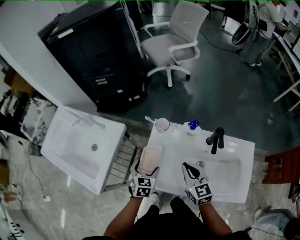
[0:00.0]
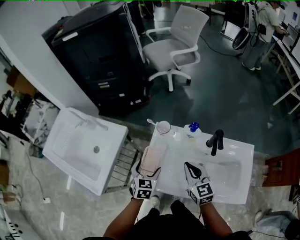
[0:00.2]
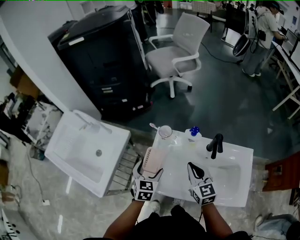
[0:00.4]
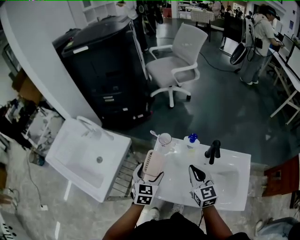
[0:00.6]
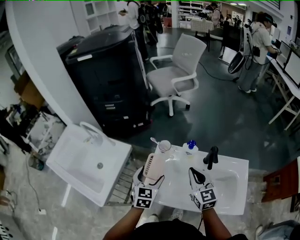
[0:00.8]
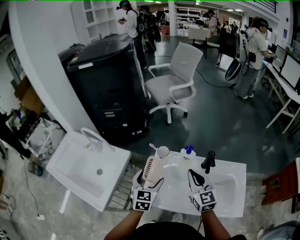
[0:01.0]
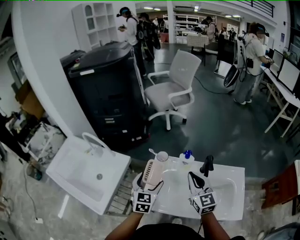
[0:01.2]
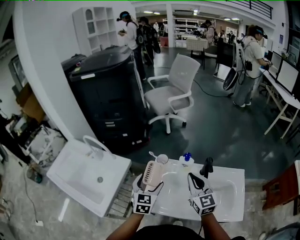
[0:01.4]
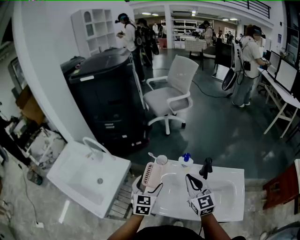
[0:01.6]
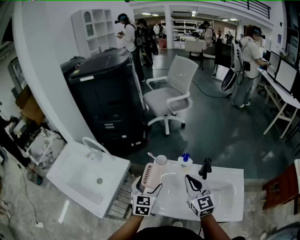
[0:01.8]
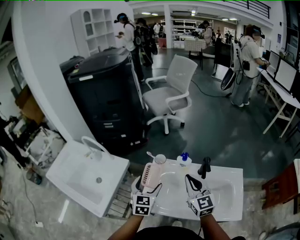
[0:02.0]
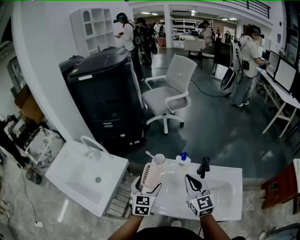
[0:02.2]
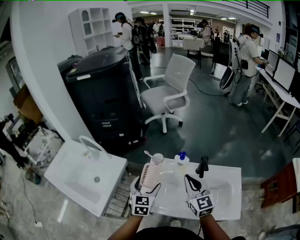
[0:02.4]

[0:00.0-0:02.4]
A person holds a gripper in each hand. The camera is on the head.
0:00.0 to 0:01.2: The two grippers go roughly 15 cm upward. The left gripper turns by some 20 degrees.
0:01.2 to 0:02.4: There are only small adjustments of the grippers.

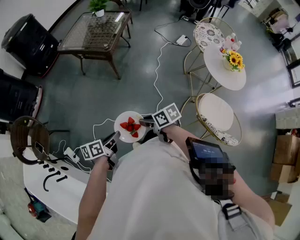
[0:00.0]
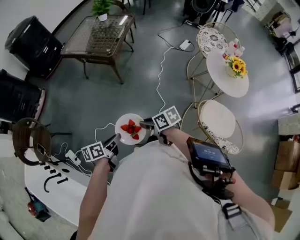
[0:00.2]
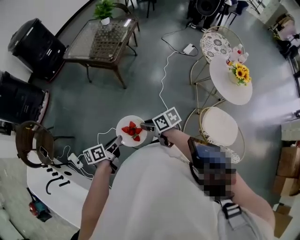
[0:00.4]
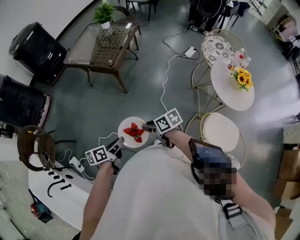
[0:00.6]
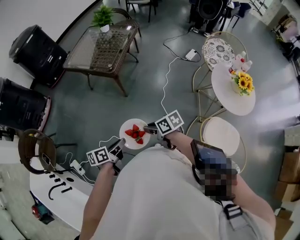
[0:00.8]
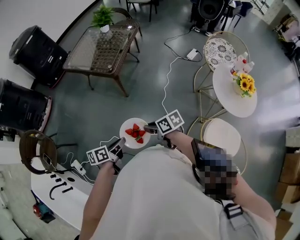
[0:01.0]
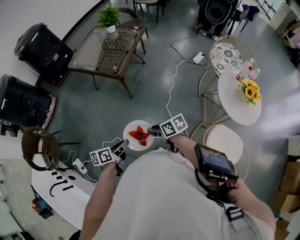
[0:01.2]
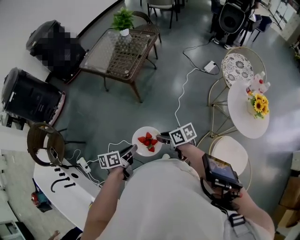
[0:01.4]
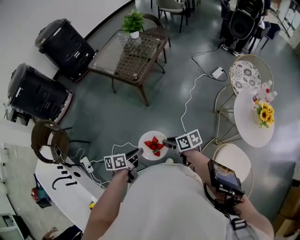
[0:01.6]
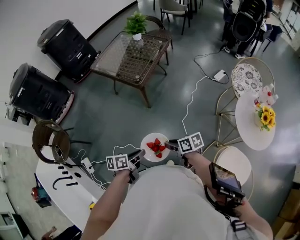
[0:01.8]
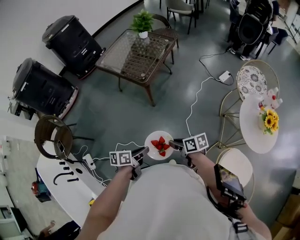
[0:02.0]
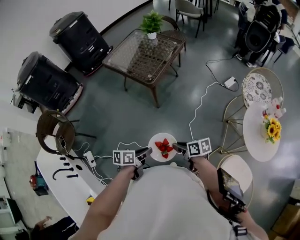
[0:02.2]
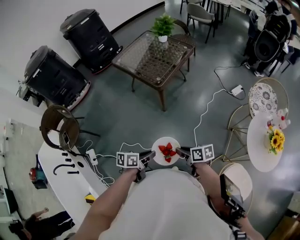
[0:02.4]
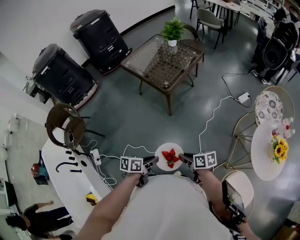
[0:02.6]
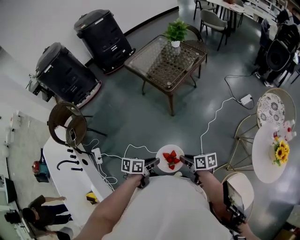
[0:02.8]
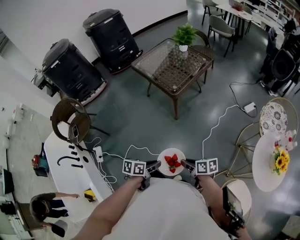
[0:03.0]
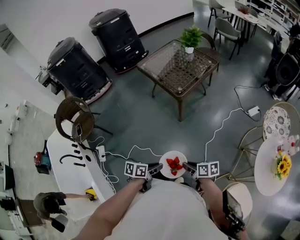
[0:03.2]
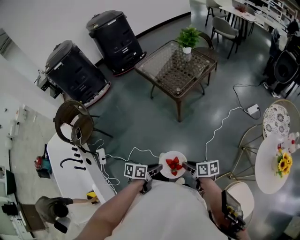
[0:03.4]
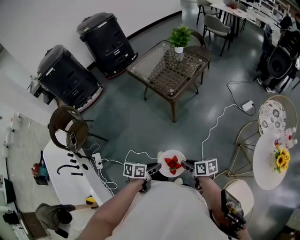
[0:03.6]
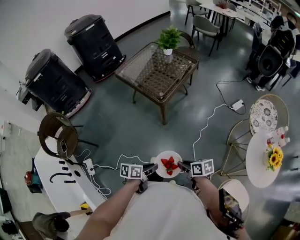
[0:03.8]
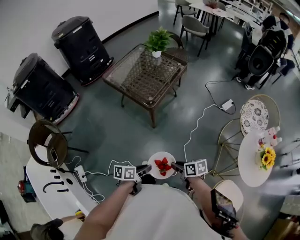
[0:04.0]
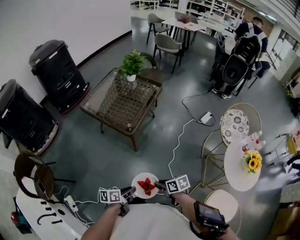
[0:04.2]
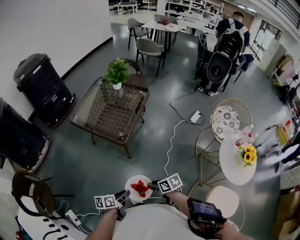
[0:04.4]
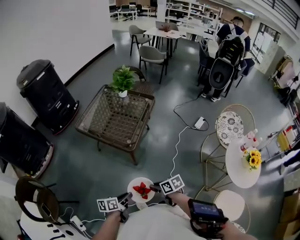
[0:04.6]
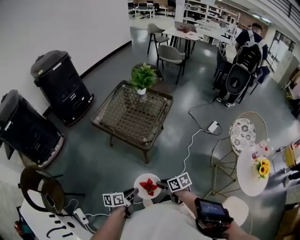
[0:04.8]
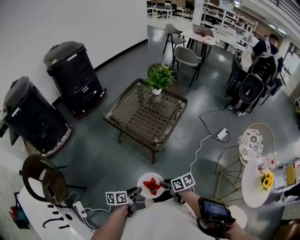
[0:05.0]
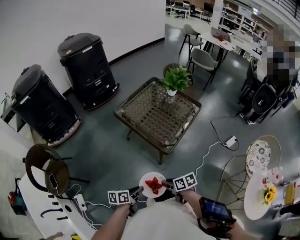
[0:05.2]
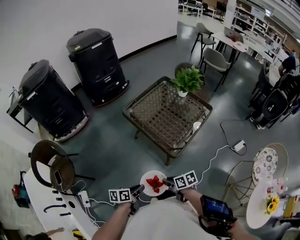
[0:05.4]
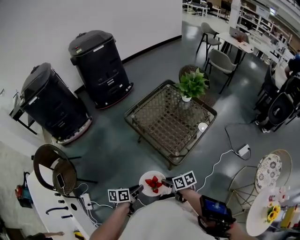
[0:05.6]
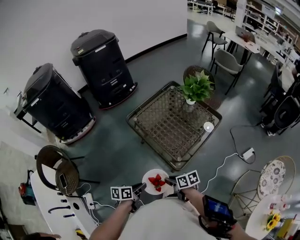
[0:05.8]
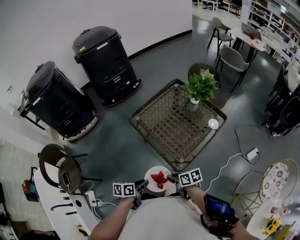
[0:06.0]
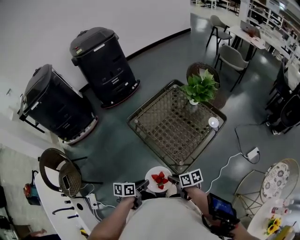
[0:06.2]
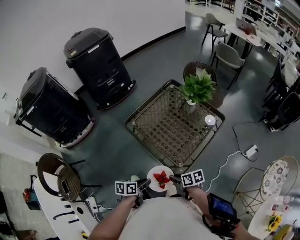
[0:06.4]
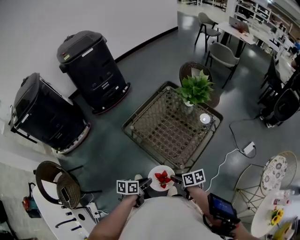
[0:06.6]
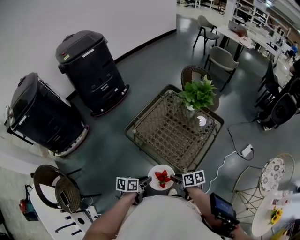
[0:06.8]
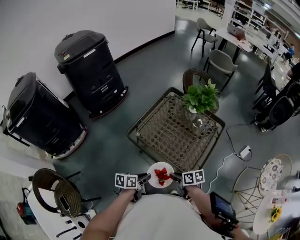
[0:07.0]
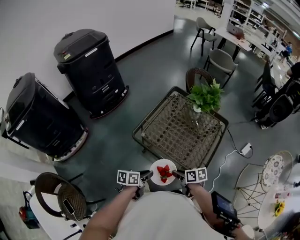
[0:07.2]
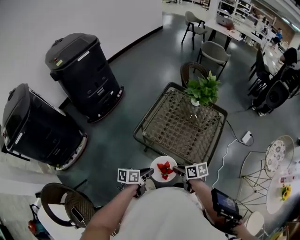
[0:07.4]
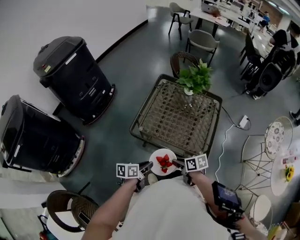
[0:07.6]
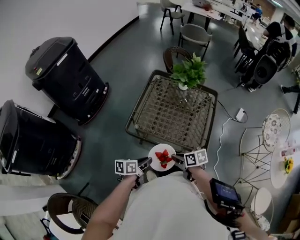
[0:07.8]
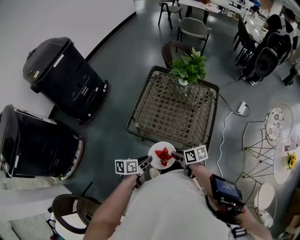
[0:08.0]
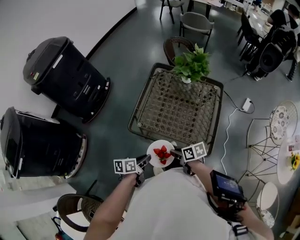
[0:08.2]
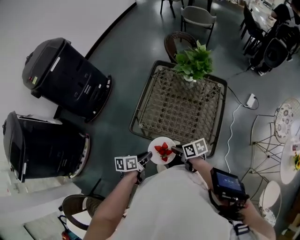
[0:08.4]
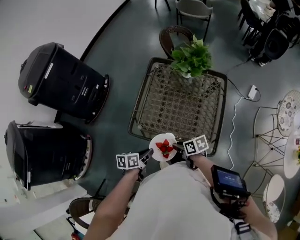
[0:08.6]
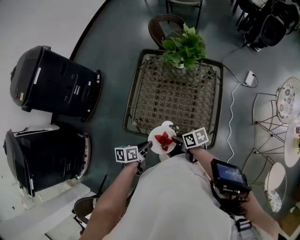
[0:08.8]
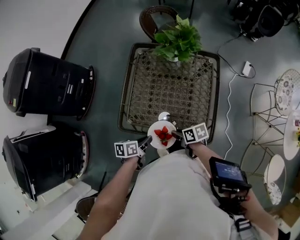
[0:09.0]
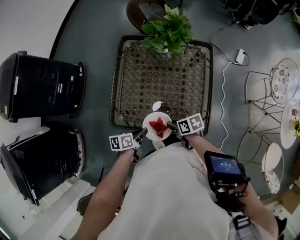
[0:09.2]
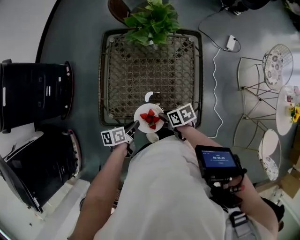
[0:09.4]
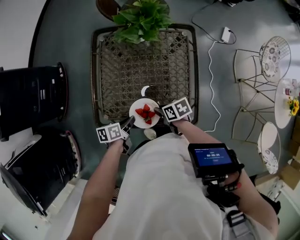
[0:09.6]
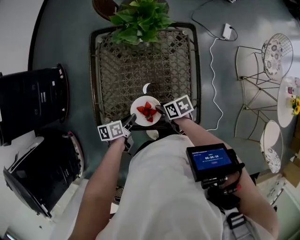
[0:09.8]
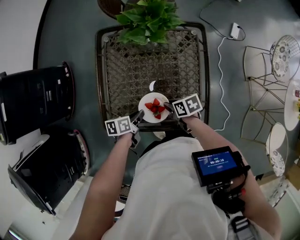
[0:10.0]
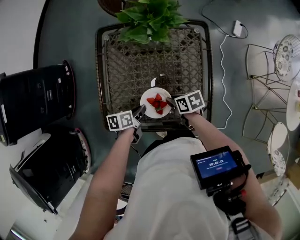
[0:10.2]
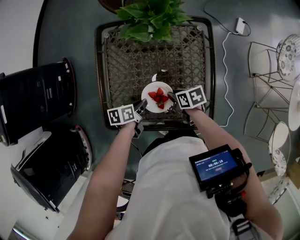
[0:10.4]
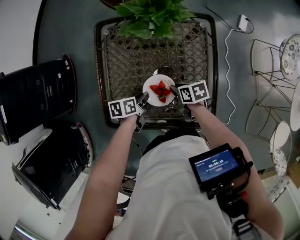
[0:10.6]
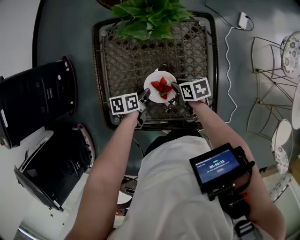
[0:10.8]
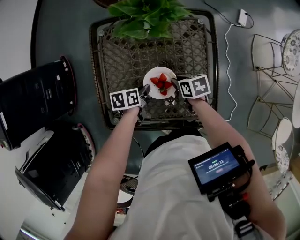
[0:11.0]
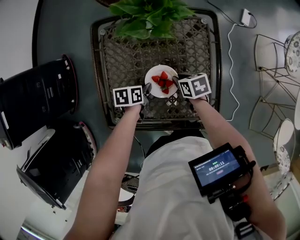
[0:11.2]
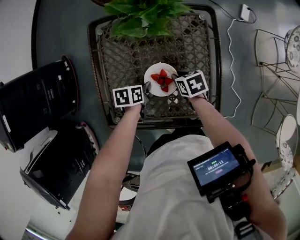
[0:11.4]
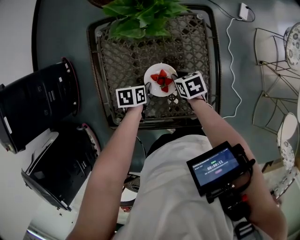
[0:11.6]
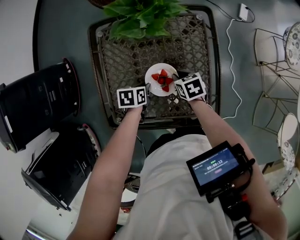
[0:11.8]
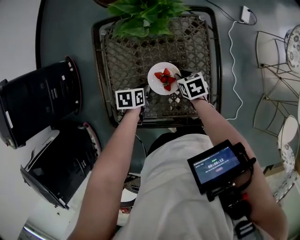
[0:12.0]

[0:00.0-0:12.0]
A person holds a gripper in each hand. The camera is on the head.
0:00.0 to 0:01.6: Both grippers travel together forward and to the right, some 15 cm.
0:01.6 to 0:03.0: The grippers make only small movements.
0:03.0 to 0:04.4: The two grippers go some 15 cm forward.
0:04.4 to 0:06.0: Both grippers travel together forward, approximately 30 cm. The left gripper turns by about 20 degrees; the right gripper turns by about 20 degrees.
0:06.0 to 0:07.6: The right gripper moves approximately 20 cm, and turns by approximately 30 degrees, while the left gripper ends up about 25 cm from where it was, and changes its angle by some 30 degrees.
0:07.6 to 0:09.0: The right gripper ends up some 15 cm from where it was. Meanwhile the left gripper changes place by some 15 cm.
0:09.0 to 0:10.4: The left gripper changes place by some 20 cm; the right gripper moves approximately 15 cm.
0:10.4 to 0:12.0: The right gripper changes place by approximately 10 cm. The left gripper moves approximately 5 cm, and rotates roughly 20 degrees.

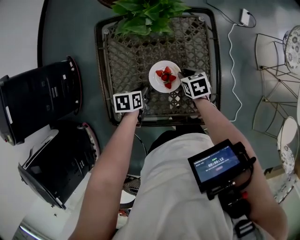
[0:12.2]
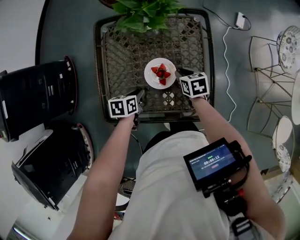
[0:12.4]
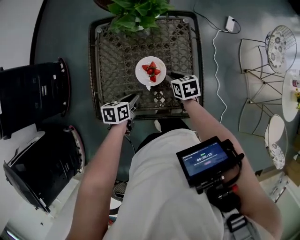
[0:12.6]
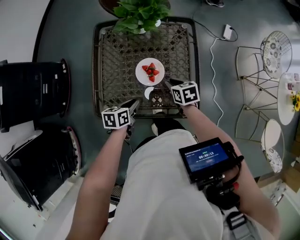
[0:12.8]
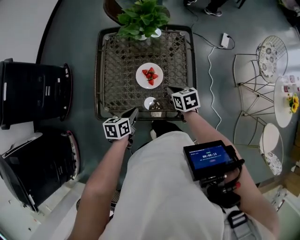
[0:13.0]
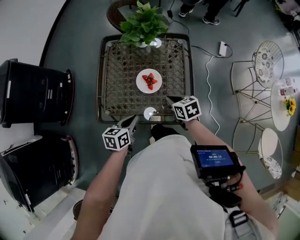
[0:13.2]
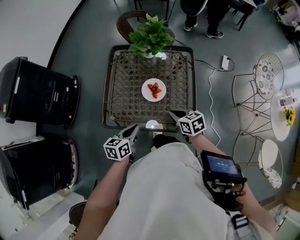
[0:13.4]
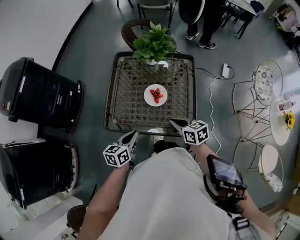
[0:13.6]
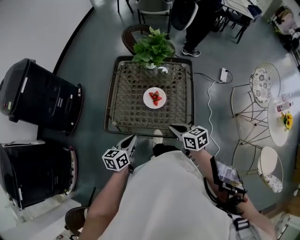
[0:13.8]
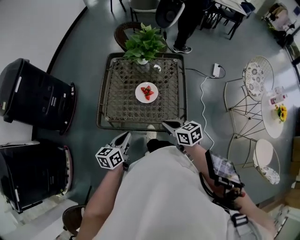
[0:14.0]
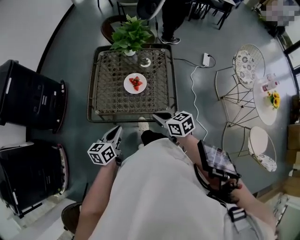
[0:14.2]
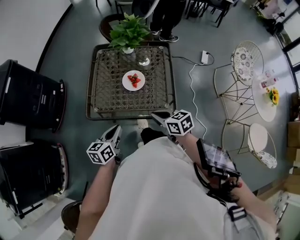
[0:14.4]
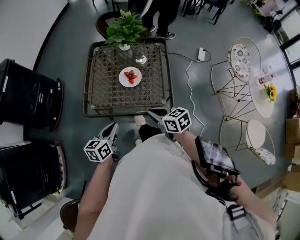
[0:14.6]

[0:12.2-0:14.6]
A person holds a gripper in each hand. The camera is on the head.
0:12.2 to 0:13.4: The two grippers go approximately 25 cm backward and upward. The left gripper points its fingers approximately 30 degrees further upward. Meanwhile the right gripper swivels roughly 20 degrees, and closes.
0:13.4 to 0:14.6: The left gripper heads backward, covering approximately 10 cm. Meanwhile the right gripper shifts some 10 cm backward and upward.

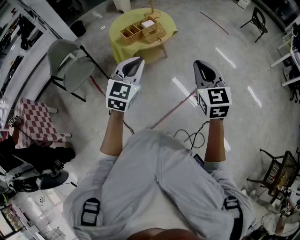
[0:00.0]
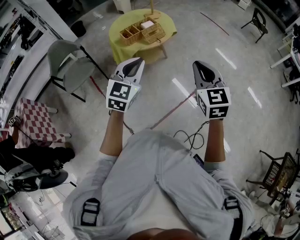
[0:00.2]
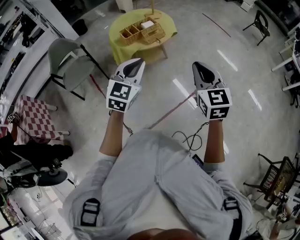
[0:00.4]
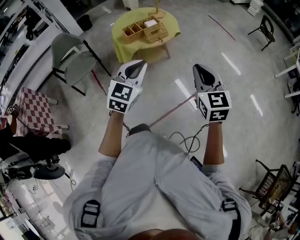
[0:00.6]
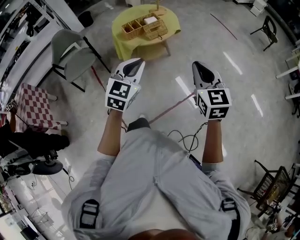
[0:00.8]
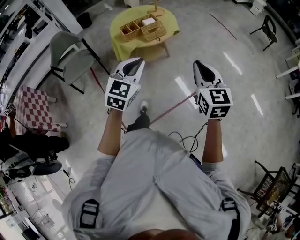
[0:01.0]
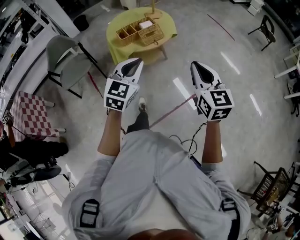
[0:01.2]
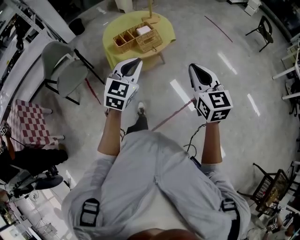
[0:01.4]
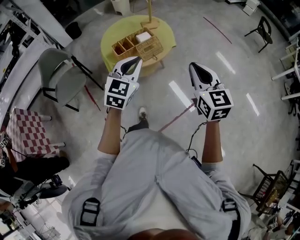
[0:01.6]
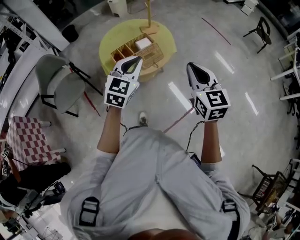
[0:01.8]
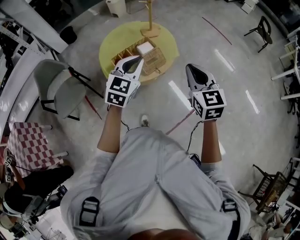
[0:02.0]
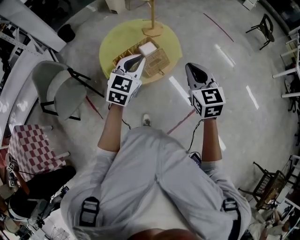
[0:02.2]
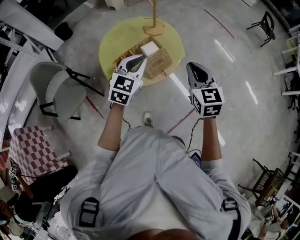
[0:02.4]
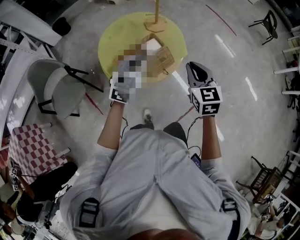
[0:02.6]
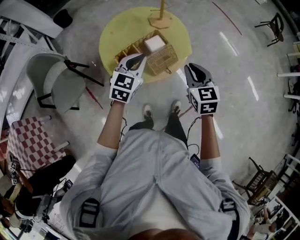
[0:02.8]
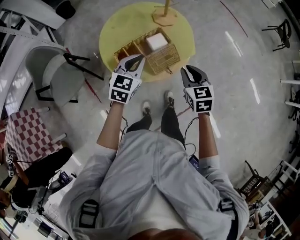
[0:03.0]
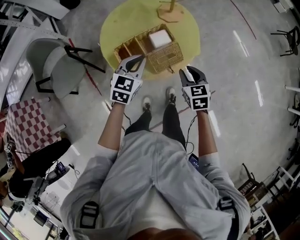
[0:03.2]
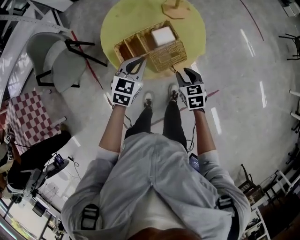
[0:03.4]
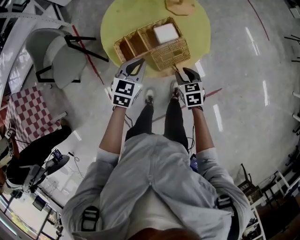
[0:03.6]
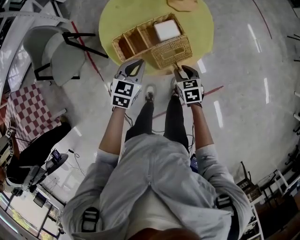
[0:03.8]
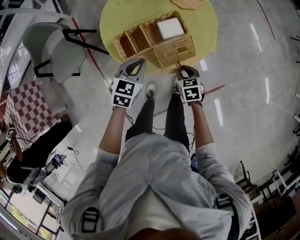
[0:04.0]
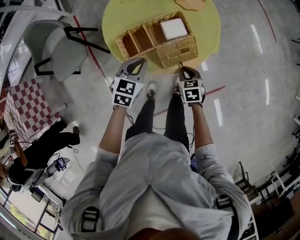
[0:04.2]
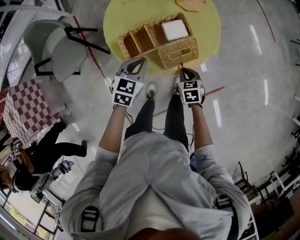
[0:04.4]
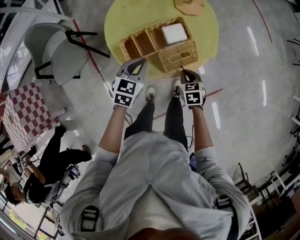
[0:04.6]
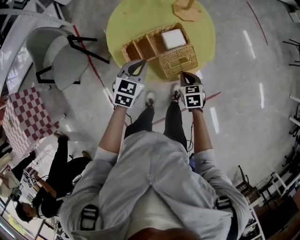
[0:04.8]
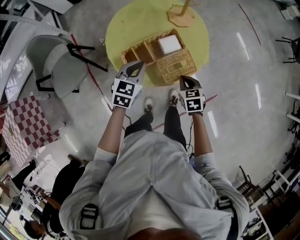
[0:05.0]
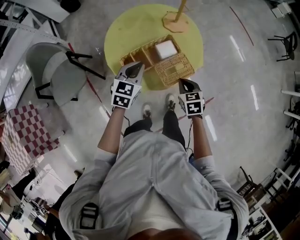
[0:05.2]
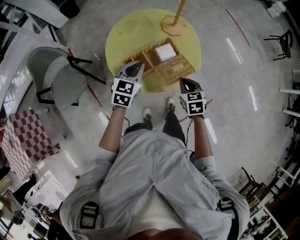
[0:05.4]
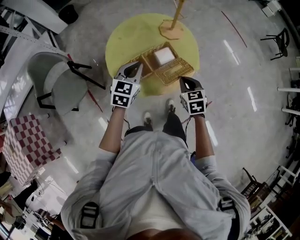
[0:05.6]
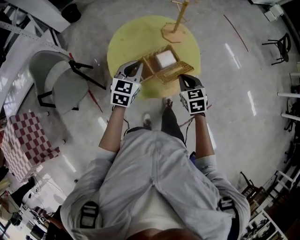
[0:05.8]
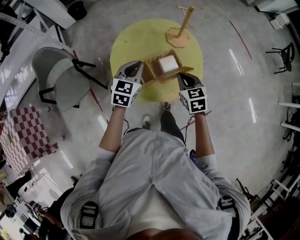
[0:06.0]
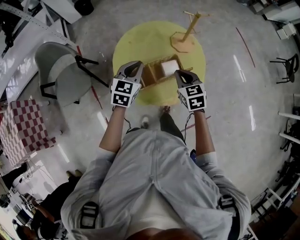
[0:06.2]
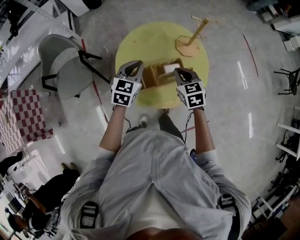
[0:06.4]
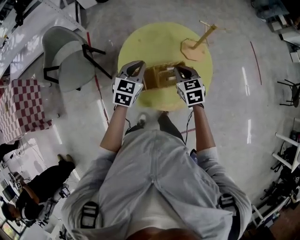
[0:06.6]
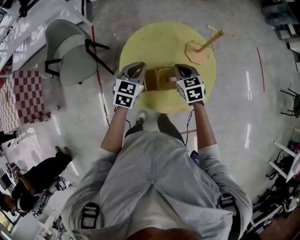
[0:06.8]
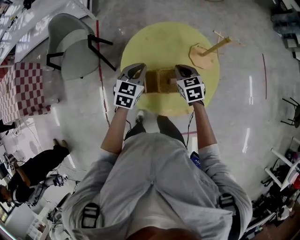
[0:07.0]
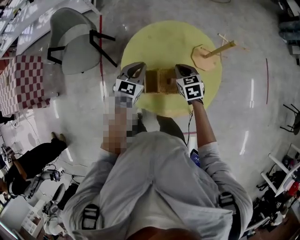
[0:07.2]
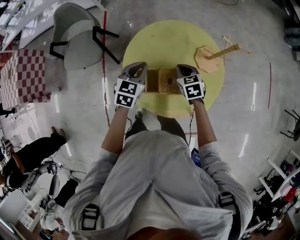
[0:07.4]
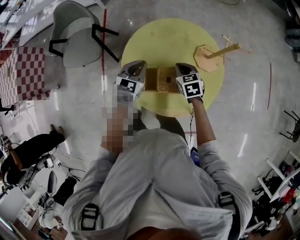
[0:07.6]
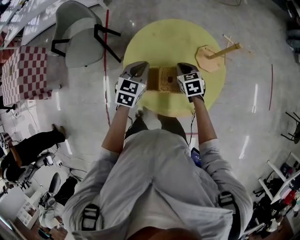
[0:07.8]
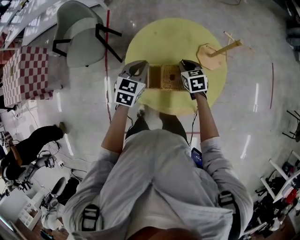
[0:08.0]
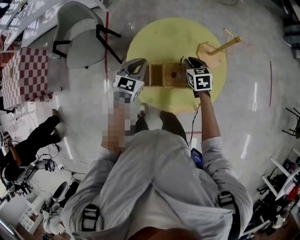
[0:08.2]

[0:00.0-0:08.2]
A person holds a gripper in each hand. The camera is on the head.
0:00.0 to 0:01.6: The two grippers go some 20 cm forward.
0:01.6 to 0:03.2: The two grippers go roughly 35 cm forward and downward. The right gripper swivels roughly 30 degrees, and opens up. Meanwhile the left gripper turns by approximately 20 degrees.
0:03.2 to 0:05.0: The right gripper heads downward, covering roughly 10 cm, and closes. The left gripper is displaced to the left by about 5 cm.
0:05.0 to 0:06.6: The right gripper is displaced forward, upward and to the left by some 20 cm, and changes its angle by about 20 degrees; the left gripper goes some 10 cm forward and upward.
0:06.6 to 0:08.2: The right gripper goes some 10 cm downward and forward.
